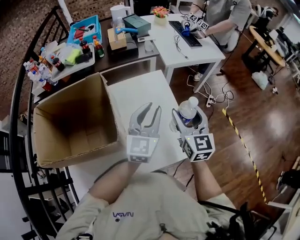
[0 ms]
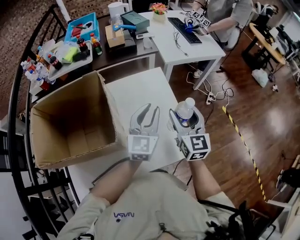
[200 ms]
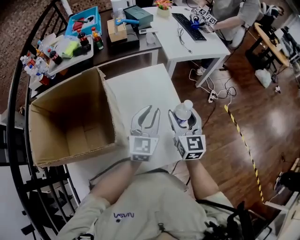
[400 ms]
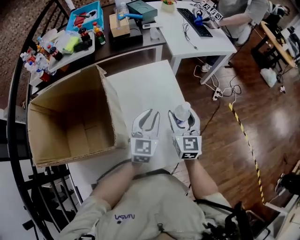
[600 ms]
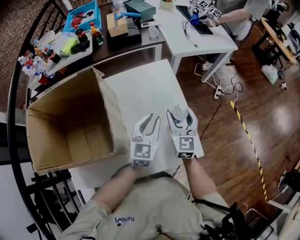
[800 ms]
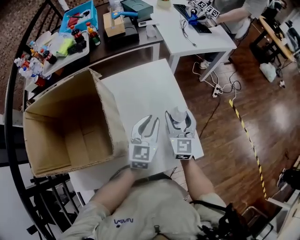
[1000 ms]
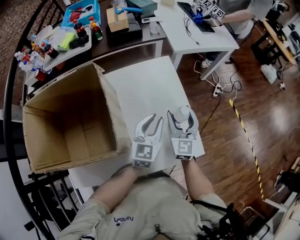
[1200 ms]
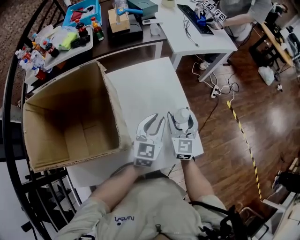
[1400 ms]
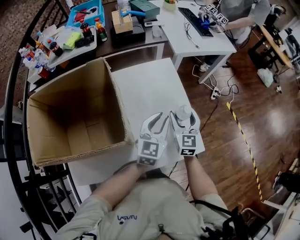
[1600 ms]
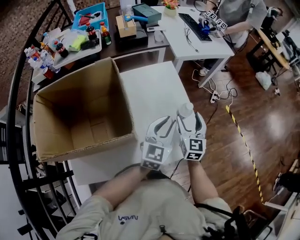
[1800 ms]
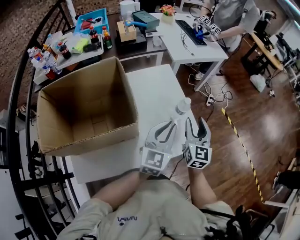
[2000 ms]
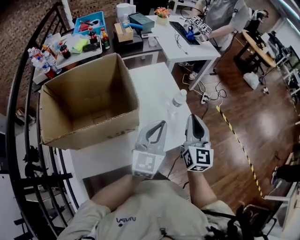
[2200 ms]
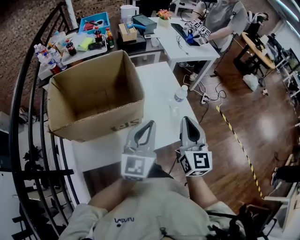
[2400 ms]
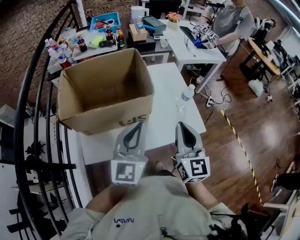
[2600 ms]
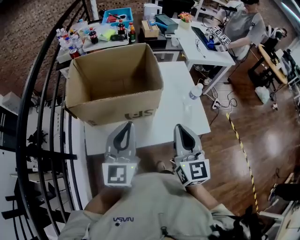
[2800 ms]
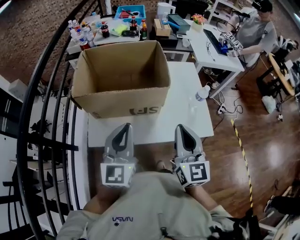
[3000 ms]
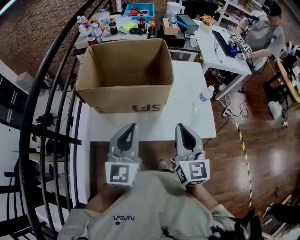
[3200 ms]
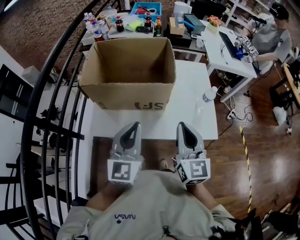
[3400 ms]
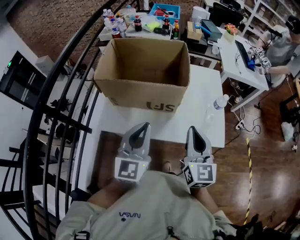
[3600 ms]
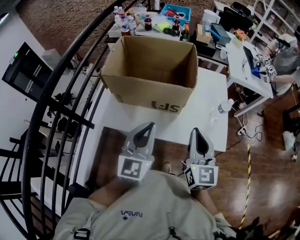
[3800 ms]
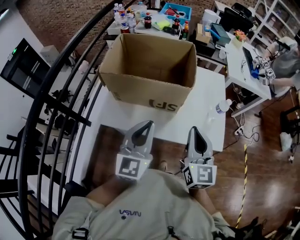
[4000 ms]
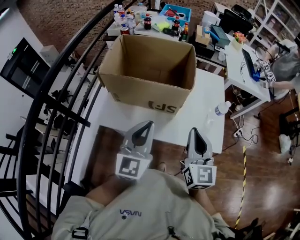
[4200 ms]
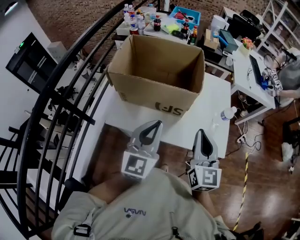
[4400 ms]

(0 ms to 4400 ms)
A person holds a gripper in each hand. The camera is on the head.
0 ms - 1400 ms: The two grippers go about 15 cm downward.
1400 ms - 3000 ms: The left gripper shifts by approximately 40 cm, changes its angle by some 30 degrees, and closes. The right gripper moves approximately 40 cm, rotates approximately 20 degrees, and closes up.
3000 ms - 4400 ms: The left gripper ends up some 5 cm from where it was.

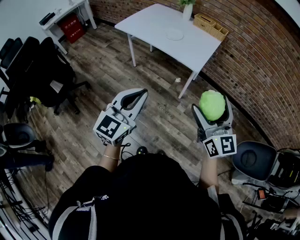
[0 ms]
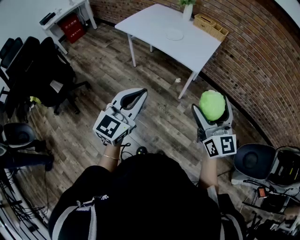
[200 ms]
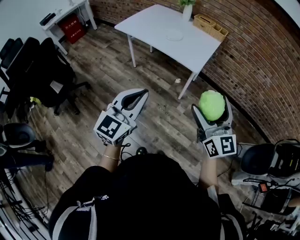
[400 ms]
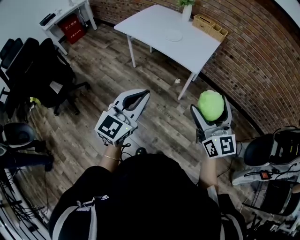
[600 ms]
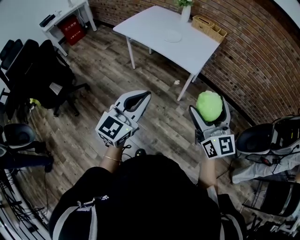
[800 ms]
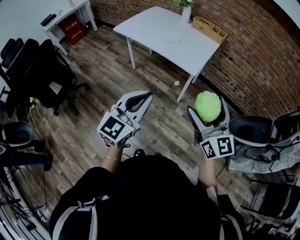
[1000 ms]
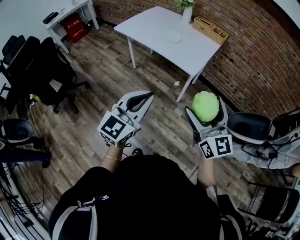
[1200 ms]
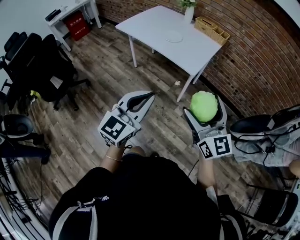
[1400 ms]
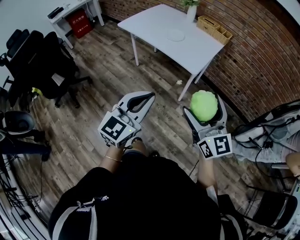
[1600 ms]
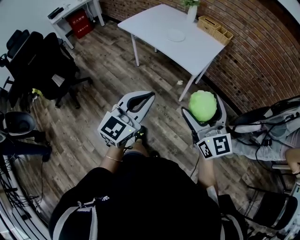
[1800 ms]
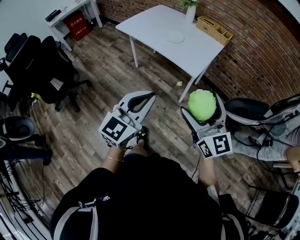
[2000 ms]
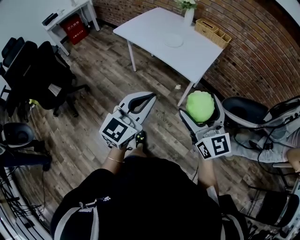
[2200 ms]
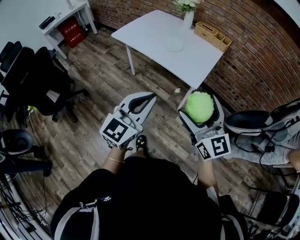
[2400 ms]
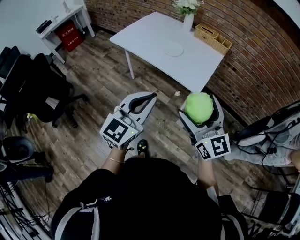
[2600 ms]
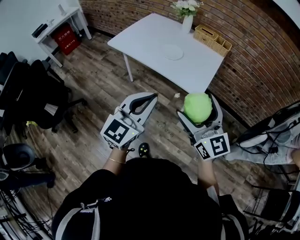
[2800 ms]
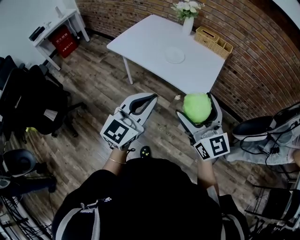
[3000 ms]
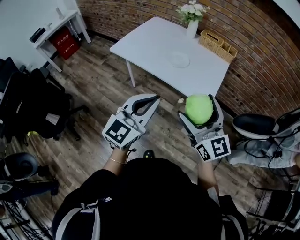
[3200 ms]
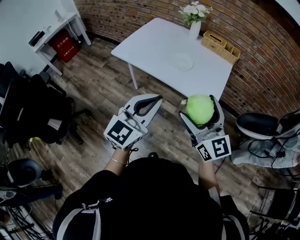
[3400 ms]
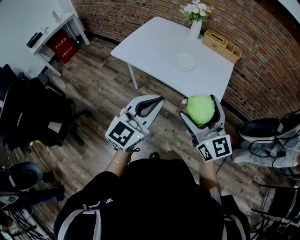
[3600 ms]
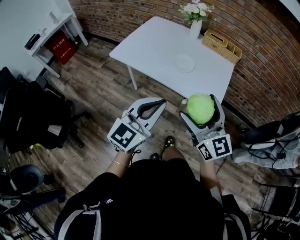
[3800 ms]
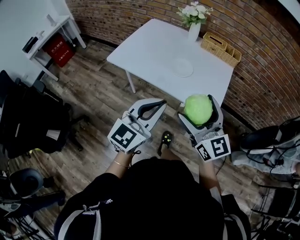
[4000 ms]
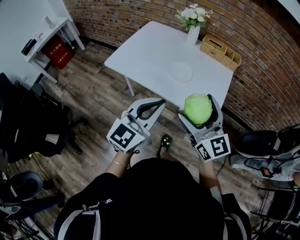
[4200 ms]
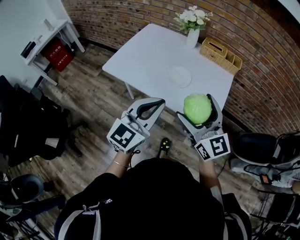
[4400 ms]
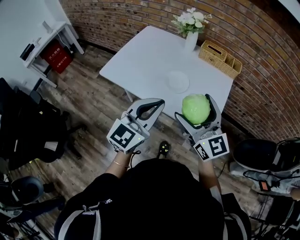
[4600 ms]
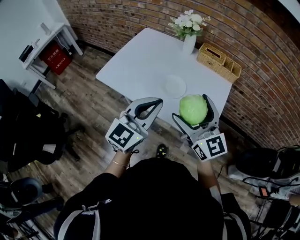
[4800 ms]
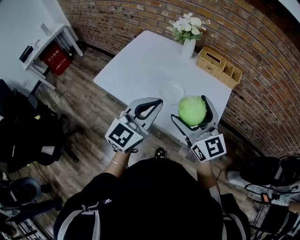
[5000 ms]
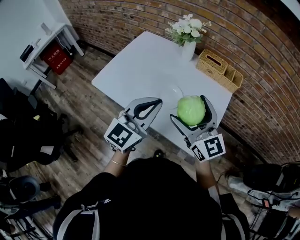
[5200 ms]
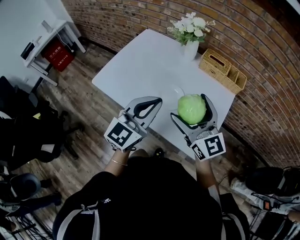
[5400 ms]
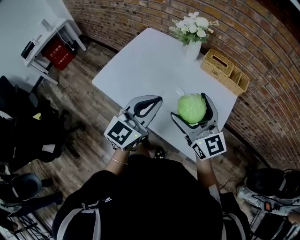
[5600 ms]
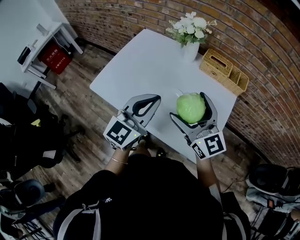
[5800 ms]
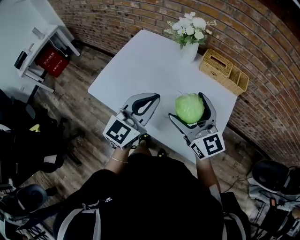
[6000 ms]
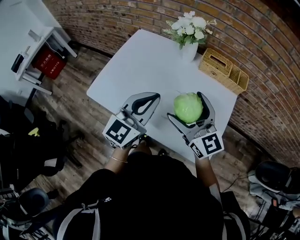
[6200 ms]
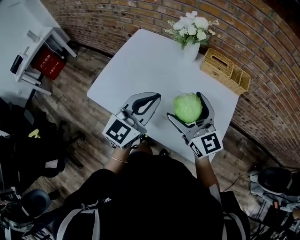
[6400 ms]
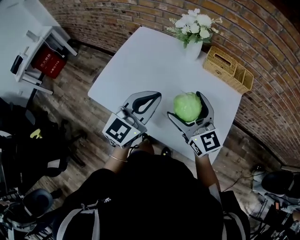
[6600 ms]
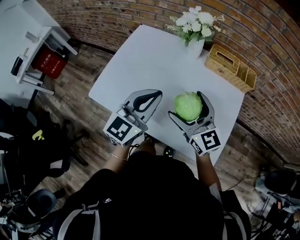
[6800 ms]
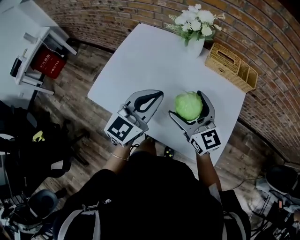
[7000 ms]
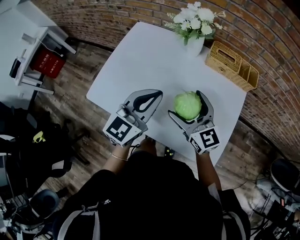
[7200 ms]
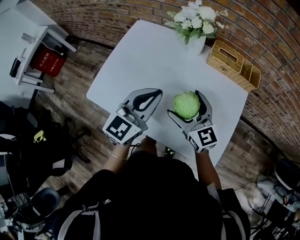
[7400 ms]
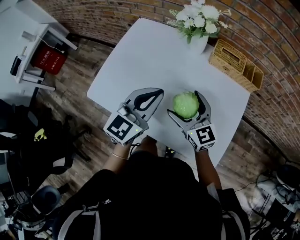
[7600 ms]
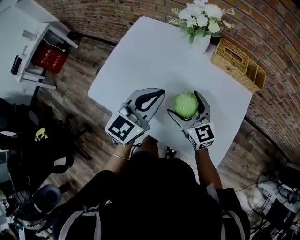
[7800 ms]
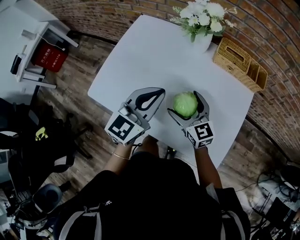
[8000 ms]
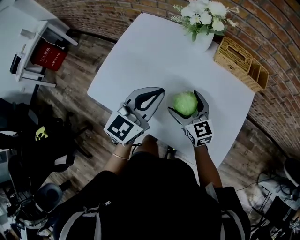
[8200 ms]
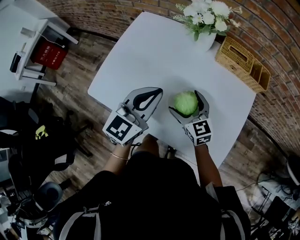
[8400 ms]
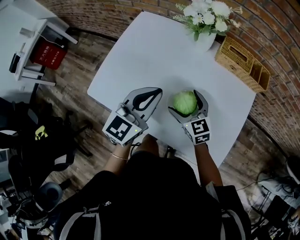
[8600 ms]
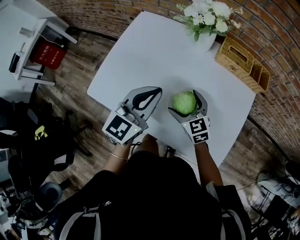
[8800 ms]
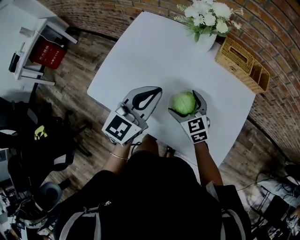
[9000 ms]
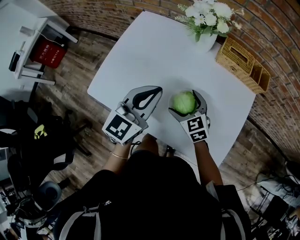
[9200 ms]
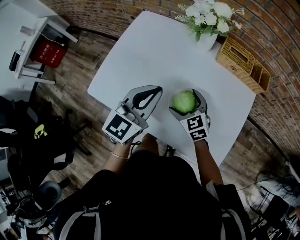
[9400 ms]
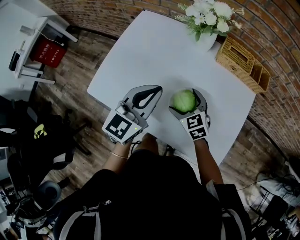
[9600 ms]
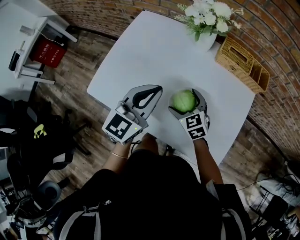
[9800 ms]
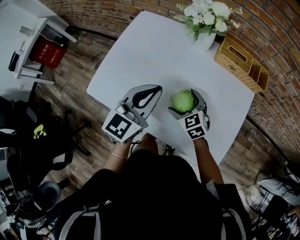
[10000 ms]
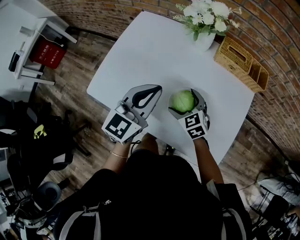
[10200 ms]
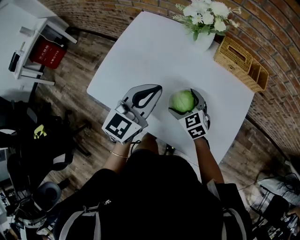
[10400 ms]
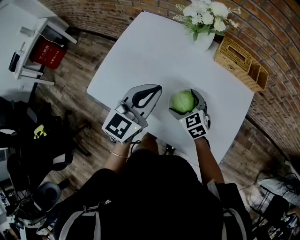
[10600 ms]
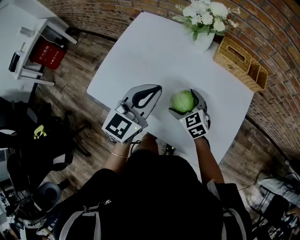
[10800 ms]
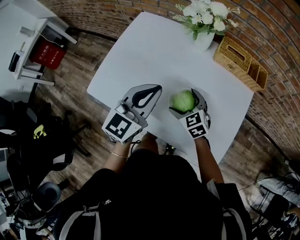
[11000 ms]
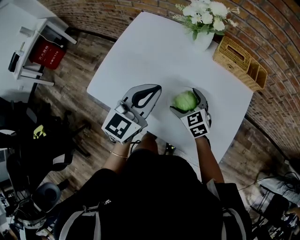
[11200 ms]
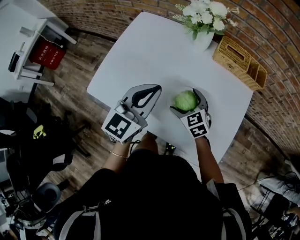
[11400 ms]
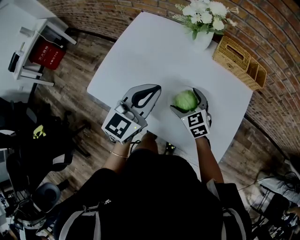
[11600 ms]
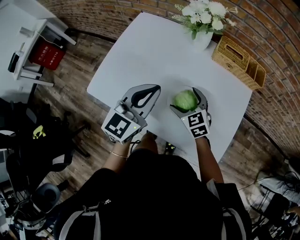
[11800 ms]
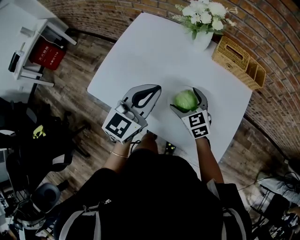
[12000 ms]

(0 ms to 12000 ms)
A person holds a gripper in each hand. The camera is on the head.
0 ms - 1600 ms: The left gripper heads to the right, covering approximately 10 cm.
1600 ms - 3000 ms: The grippers both shift forward and to the left by about 20 cm.
3000 ms - 4400 ms: The grippers both shift forward by about 20 cm.
4400 ms - 6000 ms: Both grippers move forward, approximately 20 cm.
6000 ms - 7600 ms: The left gripper moves forward, approximately 5 cm, while the right gripper moves downward and forward, about 15 cm.
7600 ms - 9000 ms: The right gripper shifts approximately 10 cm downward, and rotates some 20 degrees.
9000 ms - 12000 ms: The grippers make only small movements.

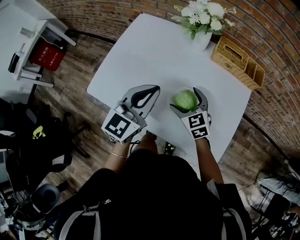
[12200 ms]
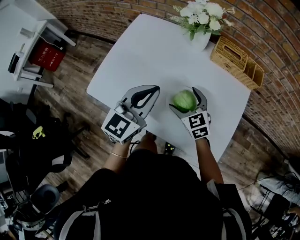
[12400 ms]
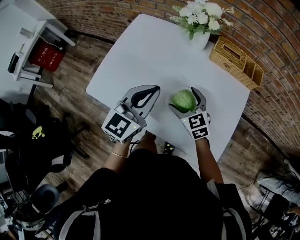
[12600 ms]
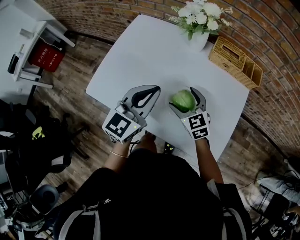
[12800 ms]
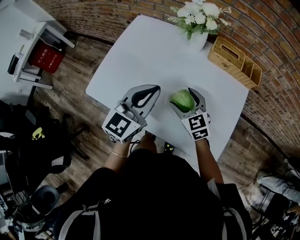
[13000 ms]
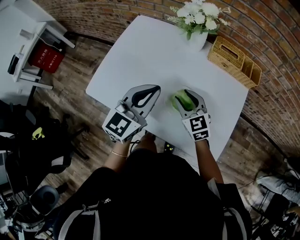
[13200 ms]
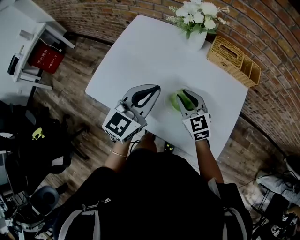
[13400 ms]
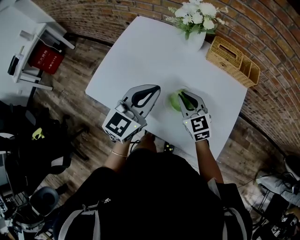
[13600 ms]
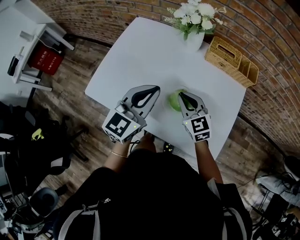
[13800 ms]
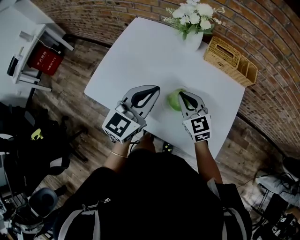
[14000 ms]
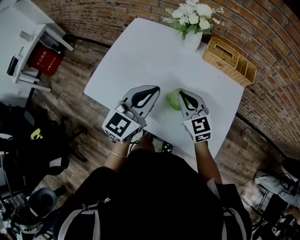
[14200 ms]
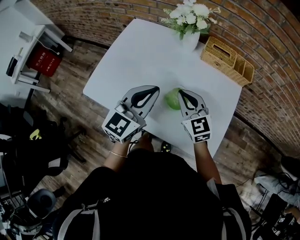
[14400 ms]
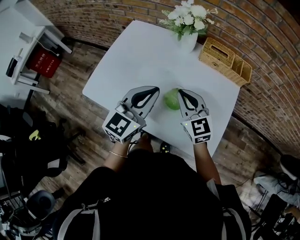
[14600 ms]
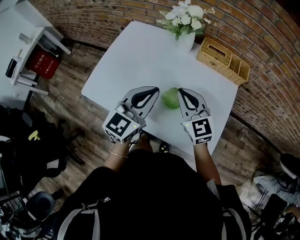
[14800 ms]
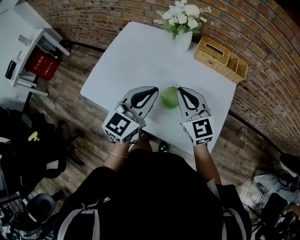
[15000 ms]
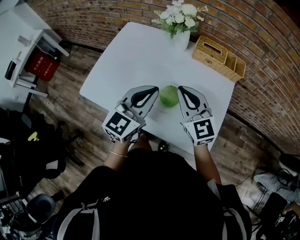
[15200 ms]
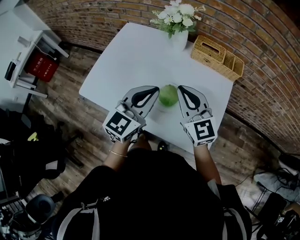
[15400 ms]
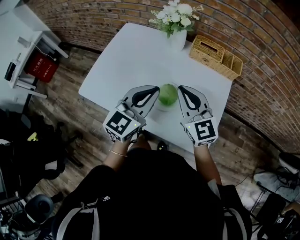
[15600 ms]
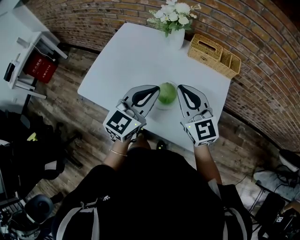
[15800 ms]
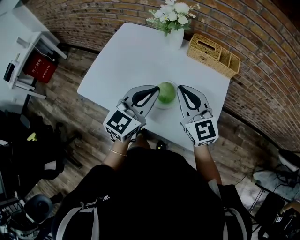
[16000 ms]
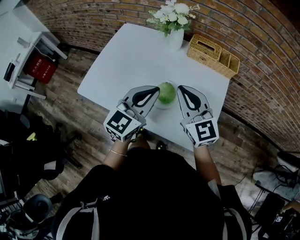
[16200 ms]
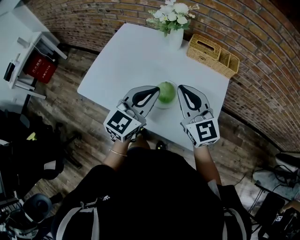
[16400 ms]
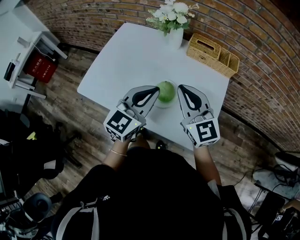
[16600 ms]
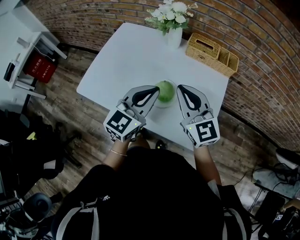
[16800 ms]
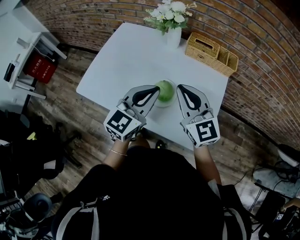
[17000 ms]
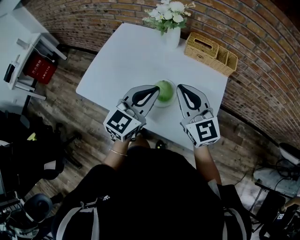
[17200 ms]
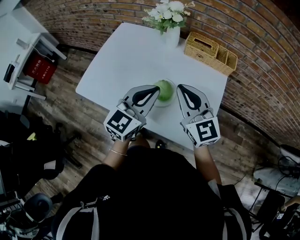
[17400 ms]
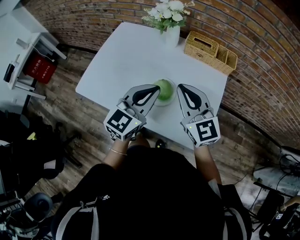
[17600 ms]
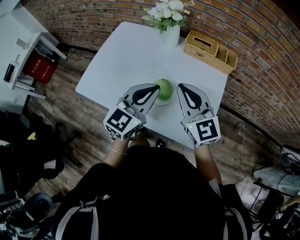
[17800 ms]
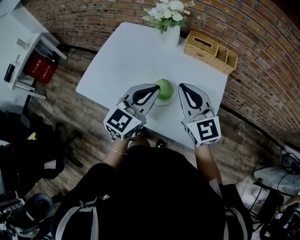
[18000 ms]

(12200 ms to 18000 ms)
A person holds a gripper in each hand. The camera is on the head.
12200 ms - 13600 ms: The right gripper closes up.
13600 ms - 15000 ms: The right gripper travels upward by roughly 10 cm.
15000 ms - 16600 ms: The right gripper travels upward by about 5 cm.
16600 ms - 18000 ms: The grippers stay close to where they were, moving slightly.

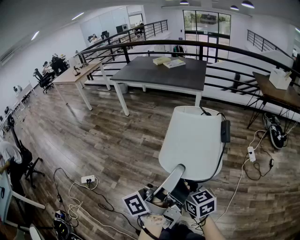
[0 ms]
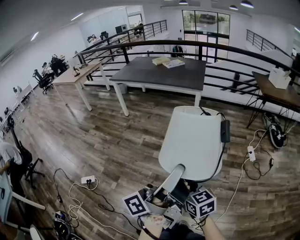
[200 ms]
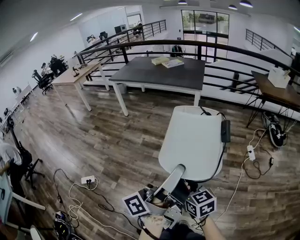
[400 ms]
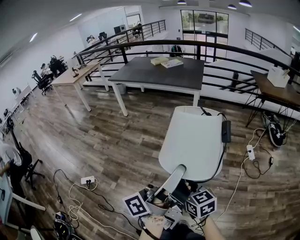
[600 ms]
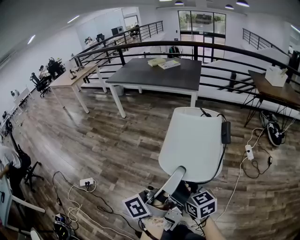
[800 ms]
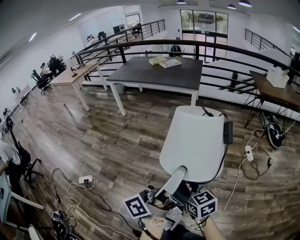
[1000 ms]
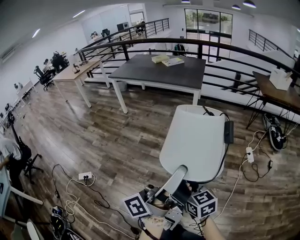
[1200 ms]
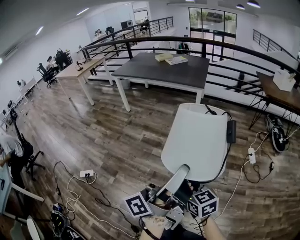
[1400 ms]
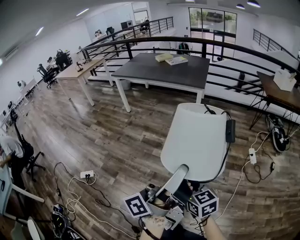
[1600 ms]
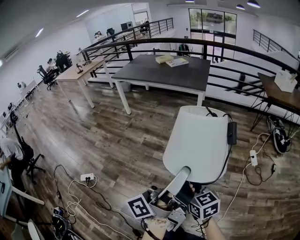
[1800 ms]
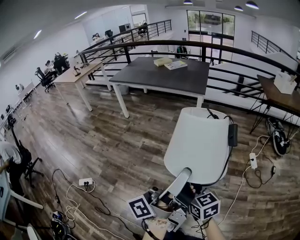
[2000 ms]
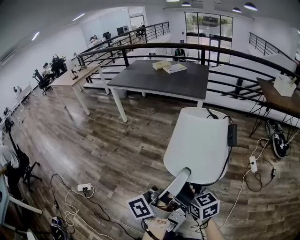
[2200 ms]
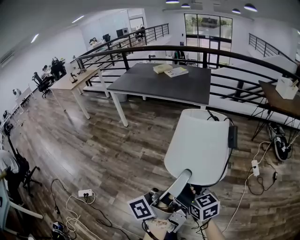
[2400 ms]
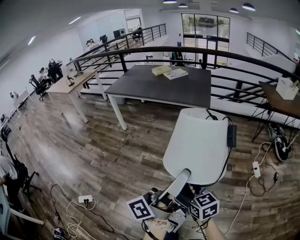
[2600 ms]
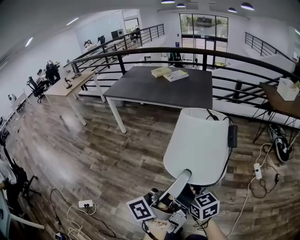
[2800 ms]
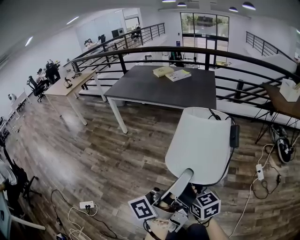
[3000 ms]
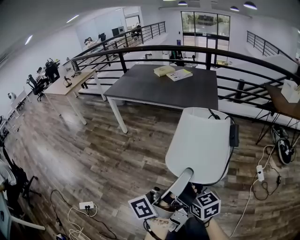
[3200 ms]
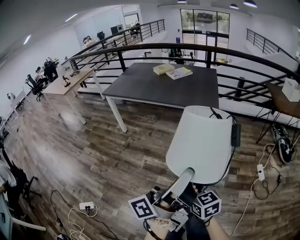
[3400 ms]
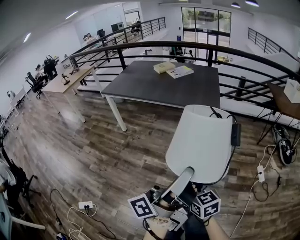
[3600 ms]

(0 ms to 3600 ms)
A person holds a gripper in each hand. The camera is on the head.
0 ms - 1800 ms: The right gripper shifts by some 5 cm.
1800 ms - 3600 ms: The right gripper changes place by approximately 35 cm.
